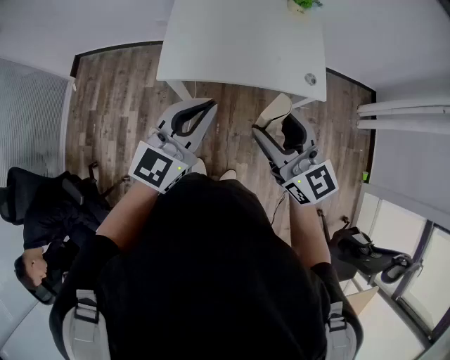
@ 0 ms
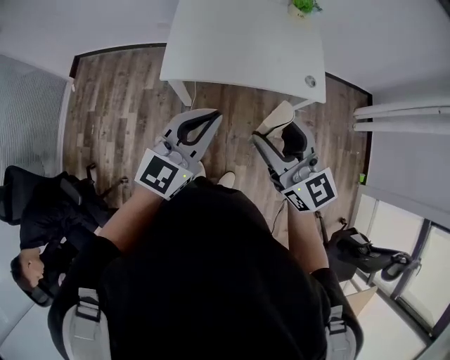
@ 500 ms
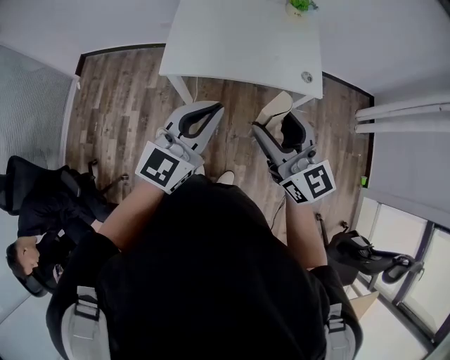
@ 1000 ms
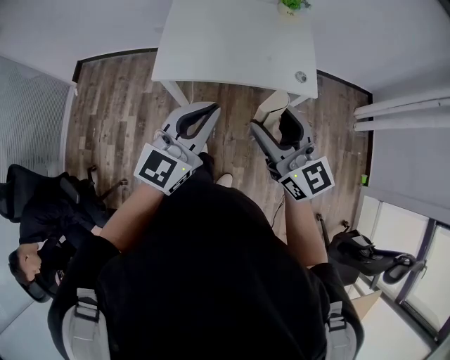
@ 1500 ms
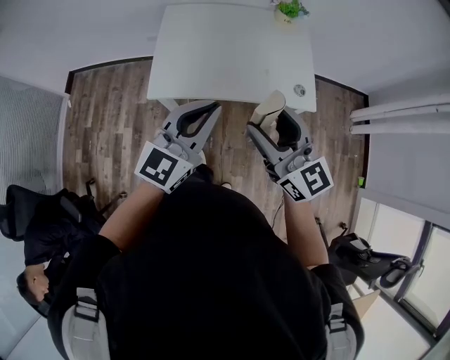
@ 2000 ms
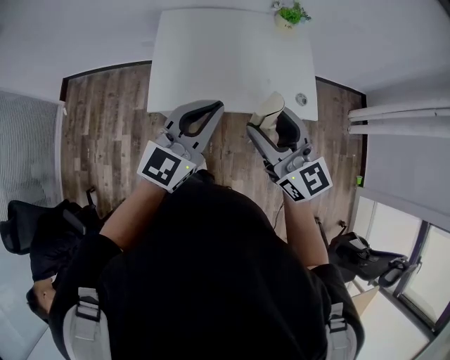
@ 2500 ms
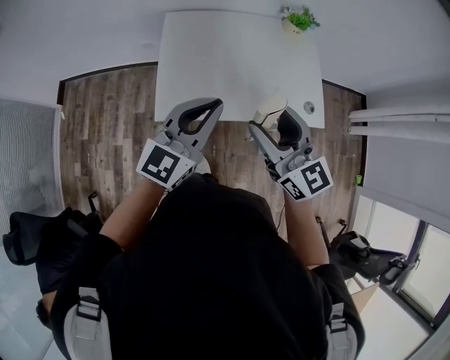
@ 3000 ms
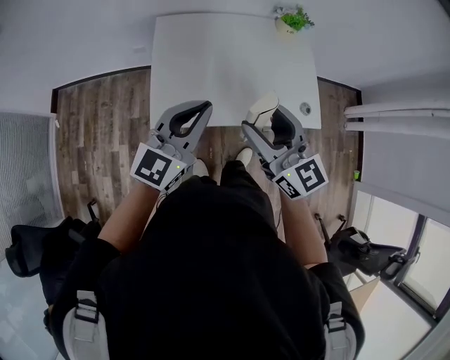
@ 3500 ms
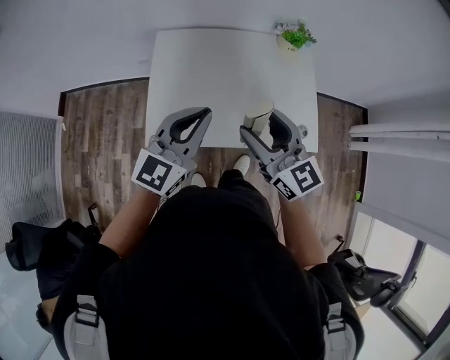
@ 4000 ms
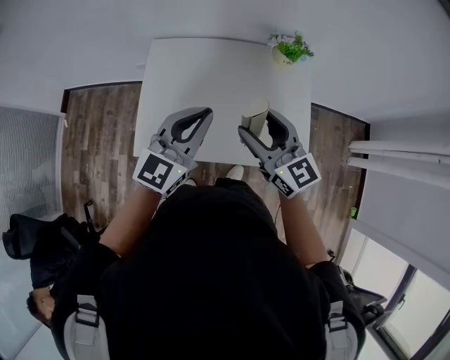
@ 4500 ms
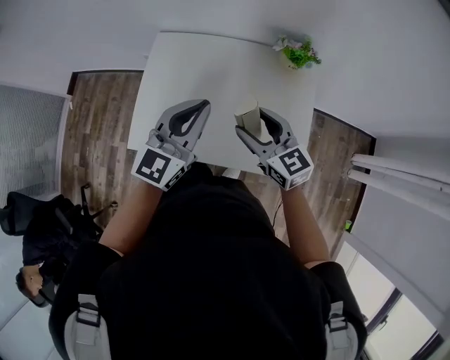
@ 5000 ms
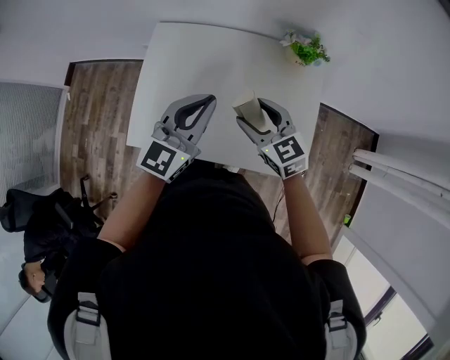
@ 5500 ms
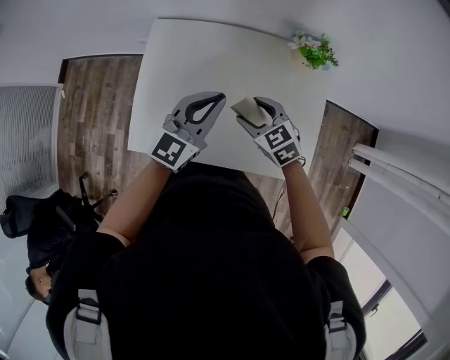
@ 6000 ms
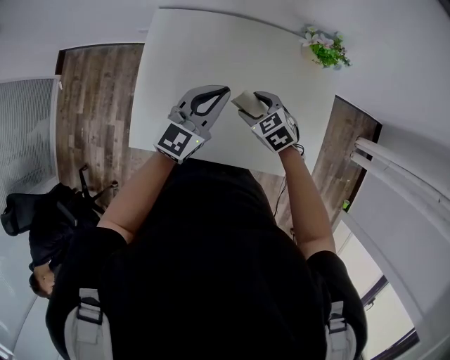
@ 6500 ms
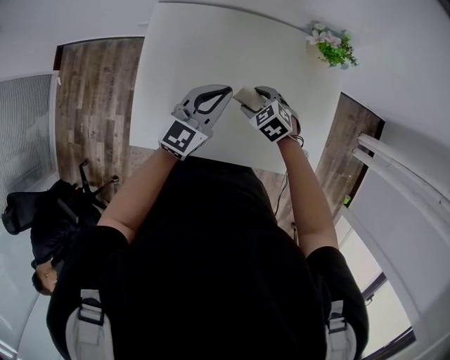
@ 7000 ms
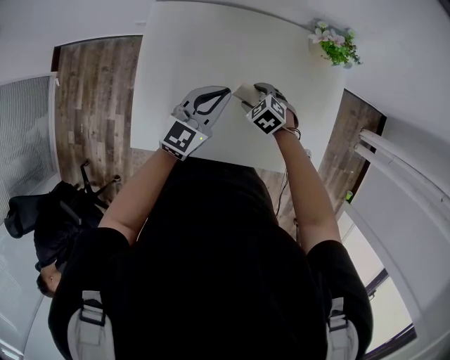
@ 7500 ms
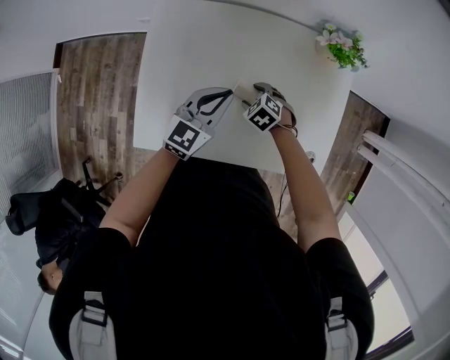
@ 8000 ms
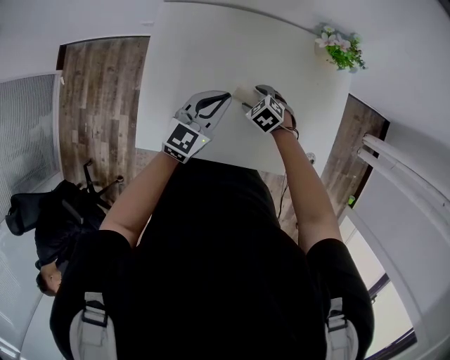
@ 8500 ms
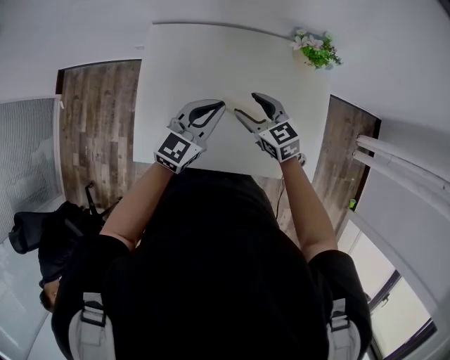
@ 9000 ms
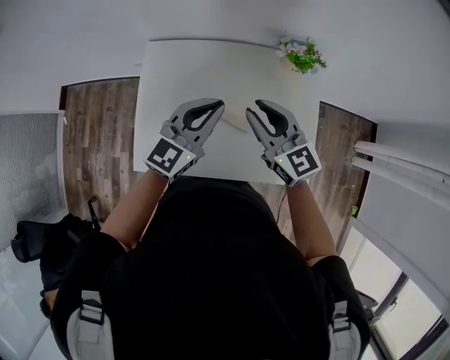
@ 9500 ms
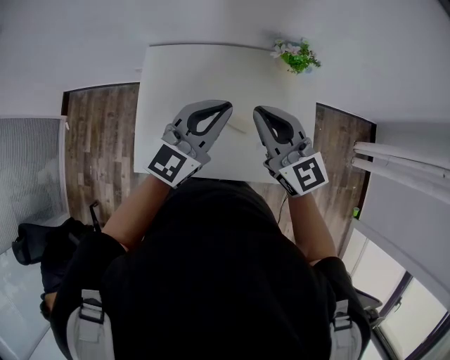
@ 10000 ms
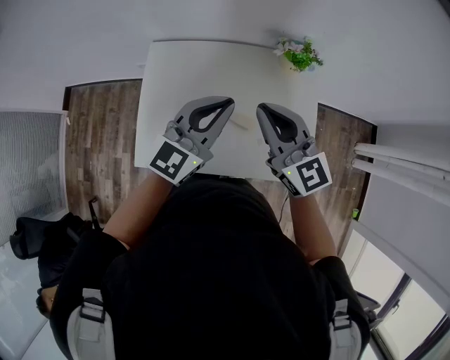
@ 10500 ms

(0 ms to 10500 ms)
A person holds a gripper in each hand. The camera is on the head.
0 ms - 2000 ms: Both grippers travel together forward, approximately 5 cm.
2000 ms - 4000 ms: The two grippers go some 20 cm forward.
4000 ms - 6500 ms: The left gripper shifts some 25 cm forward, downward and to the right; the right gripper moves downward and forward, some 35 cm, and tilts its fingers roughly 50 degrees downward.
6500 ms - 8500 ms: The right gripper travels downward by about 10 cm; the left gripper moves downward, about 10 cm.
8500 ms - 10500 ms: The right gripper goes about 40 cm upward, points its fingers about 70 degrees further upward, and closes; the left gripper goes approximately 20 cm upward.

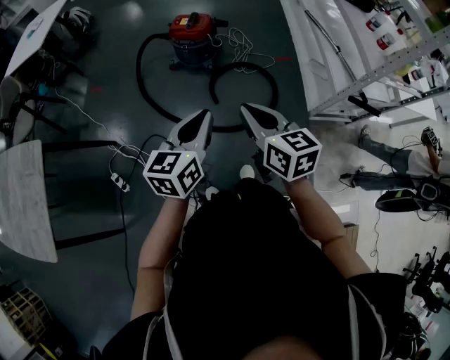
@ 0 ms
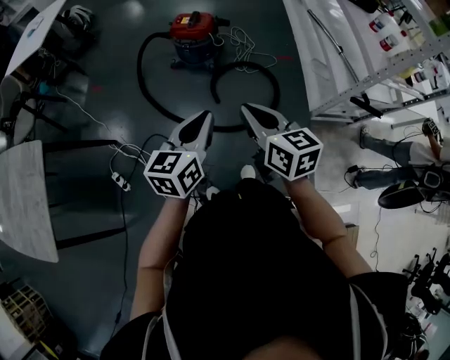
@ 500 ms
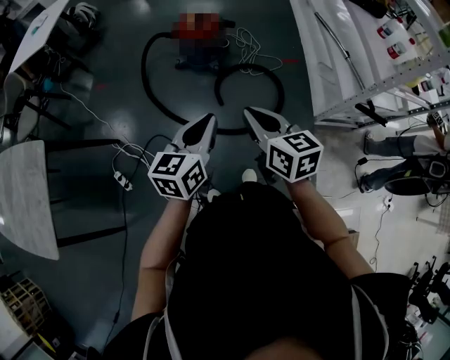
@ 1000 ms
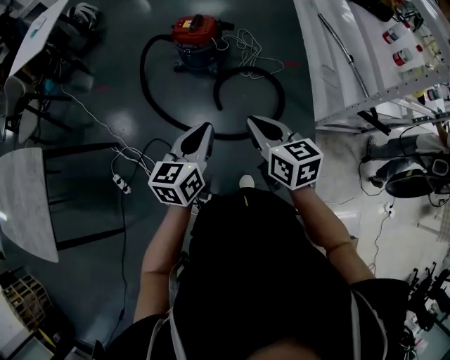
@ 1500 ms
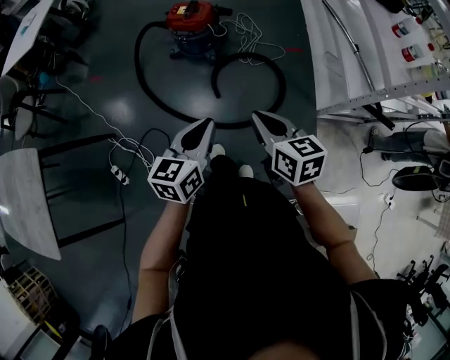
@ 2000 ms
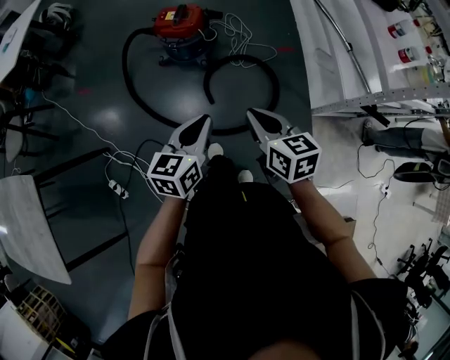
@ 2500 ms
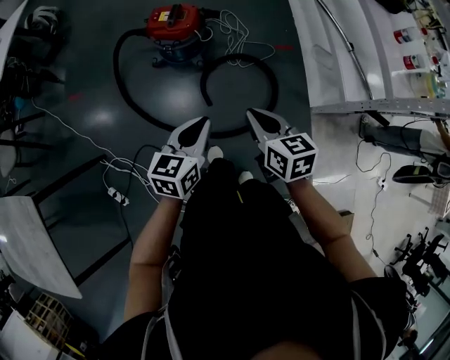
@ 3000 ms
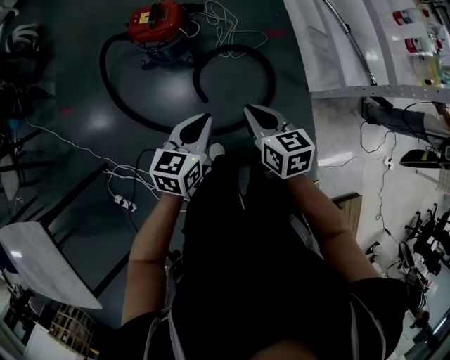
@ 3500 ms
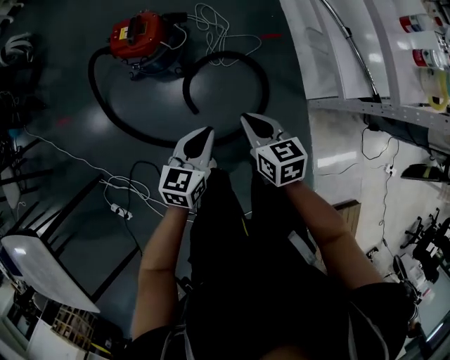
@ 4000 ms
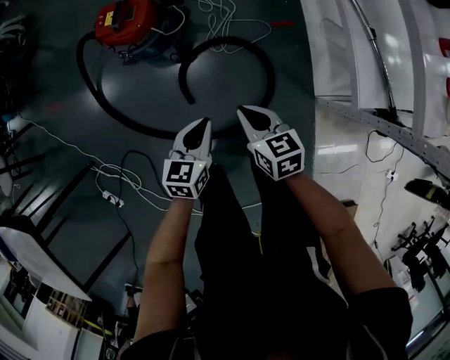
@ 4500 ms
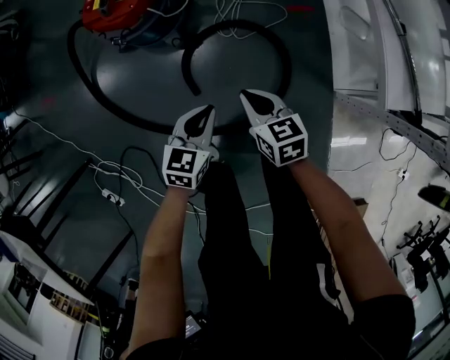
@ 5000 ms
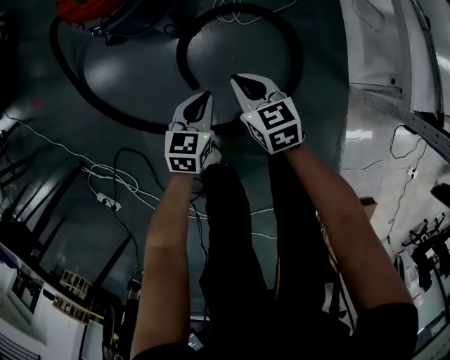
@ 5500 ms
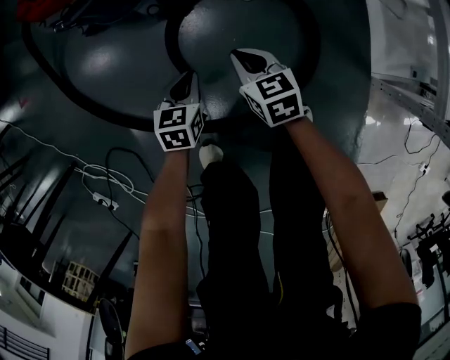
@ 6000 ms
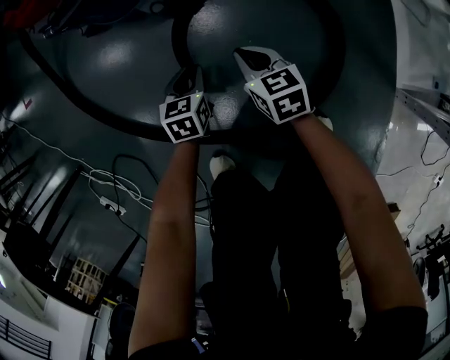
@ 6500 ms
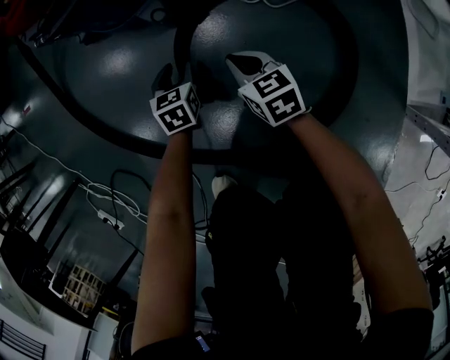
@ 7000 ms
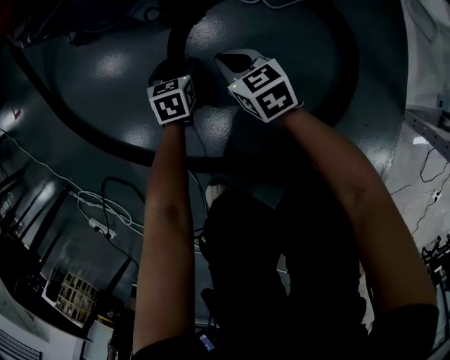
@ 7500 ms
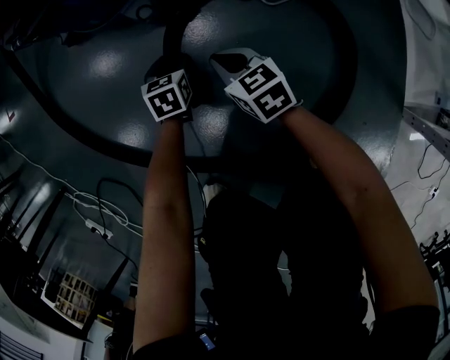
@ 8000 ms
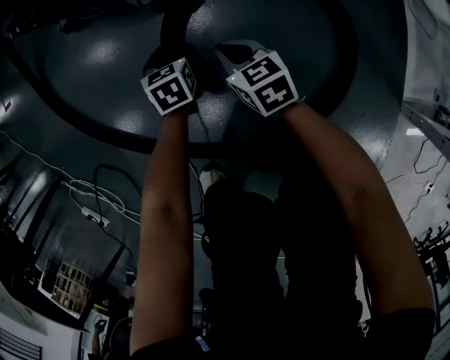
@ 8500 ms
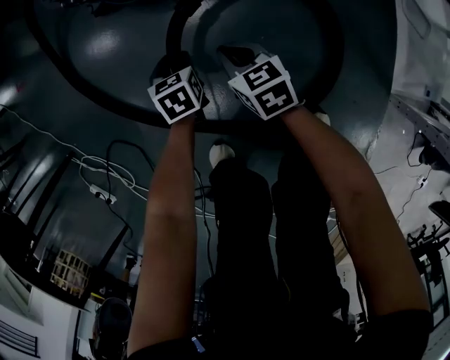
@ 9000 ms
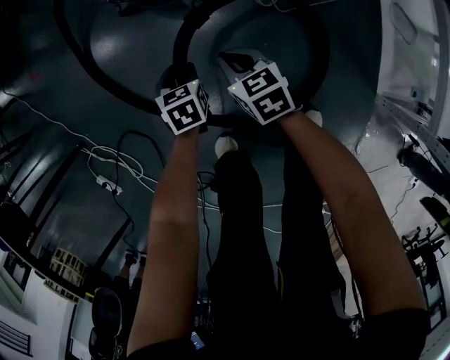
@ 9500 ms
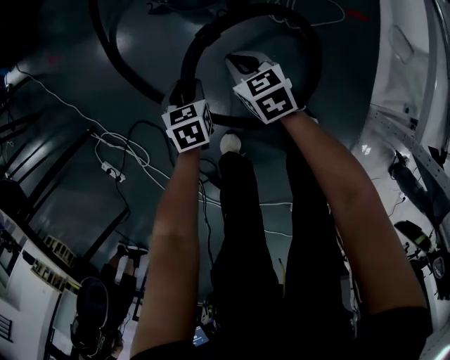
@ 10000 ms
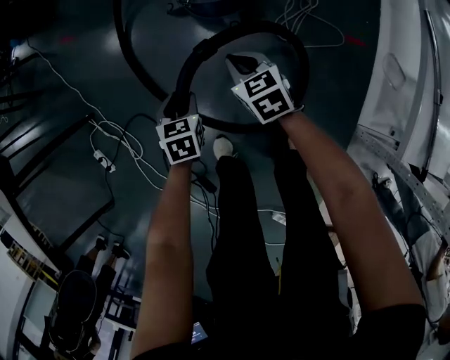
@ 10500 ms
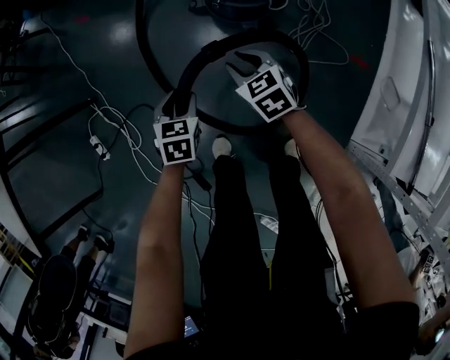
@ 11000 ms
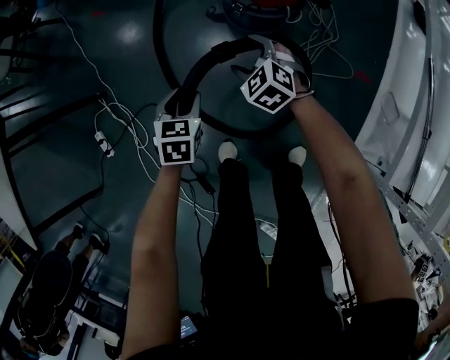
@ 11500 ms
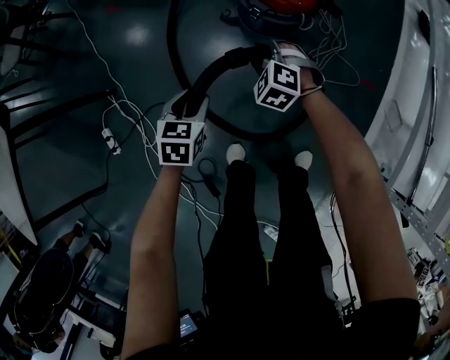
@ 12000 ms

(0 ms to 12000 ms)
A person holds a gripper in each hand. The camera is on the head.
0 ms - 2000 ms: The right gripper heads forward, to the right and downward, covering approximately 15 cm, while the left gripper is displaced forward, downward and to the right by about 15 cm.
2000 ms - 4000 ms: Both grippers move forward and downward, approximately 25 cm.
4000 ms - 6000 ms: Both grippers travel together downward, roughly 50 cm. The left gripper changes its angle by roughly 20 degrees.
6000 ms - 8000 ms: The left gripper shifts some 25 cm downward and forward, and opens up; the right gripper heads downward, forward and to the left, covering about 20 cm.
8000 ms - 10000 ms: Both grippers travel together upward, about 35 cm.
10000 ms - 12000 ms: The left gripper travels upward and to the left by approximately 25 cm; the right gripper moves upward, to the left and forward, some 20 cm, rolls counterclockwise, seen from behind, by some 70 degrees, and opens.

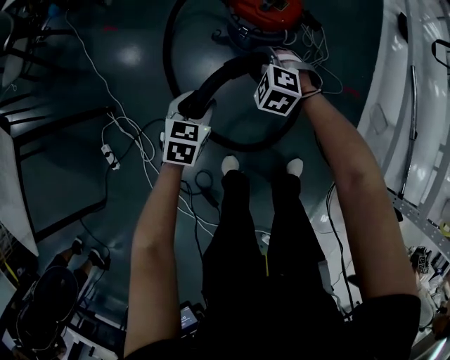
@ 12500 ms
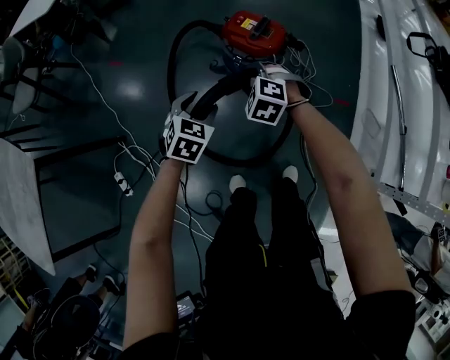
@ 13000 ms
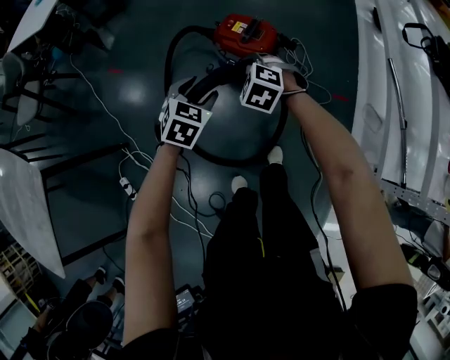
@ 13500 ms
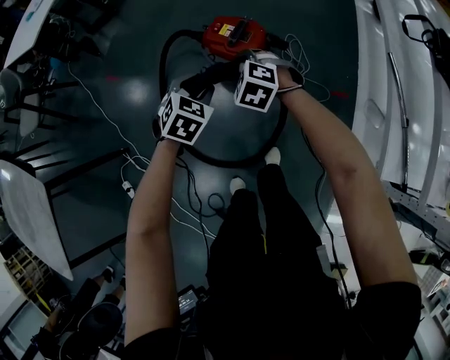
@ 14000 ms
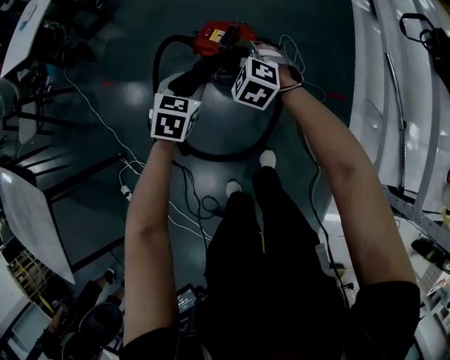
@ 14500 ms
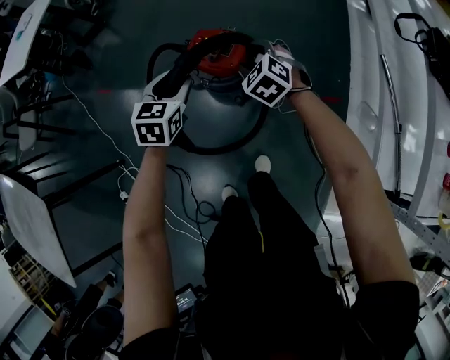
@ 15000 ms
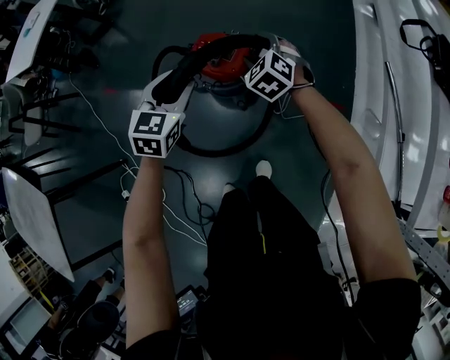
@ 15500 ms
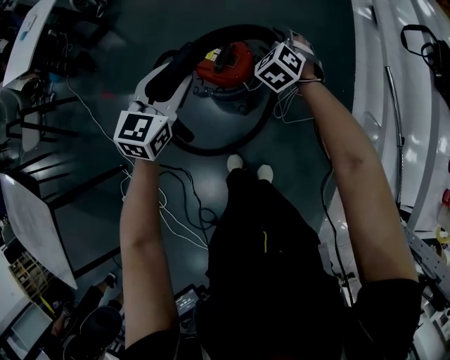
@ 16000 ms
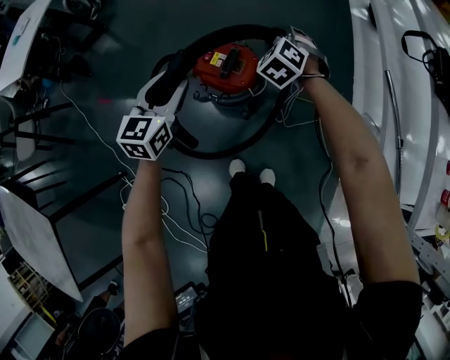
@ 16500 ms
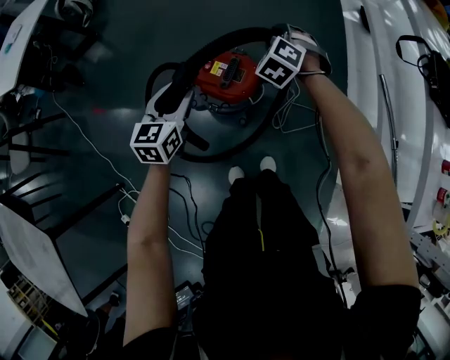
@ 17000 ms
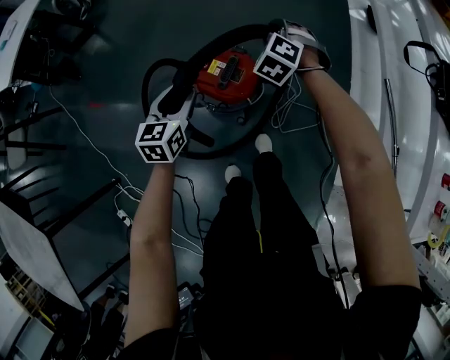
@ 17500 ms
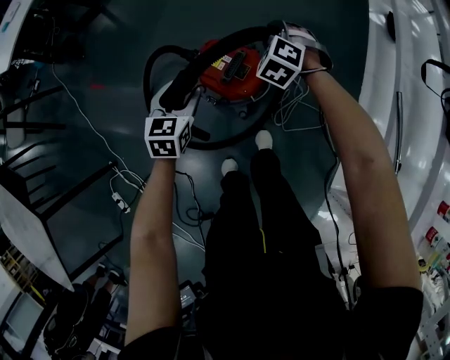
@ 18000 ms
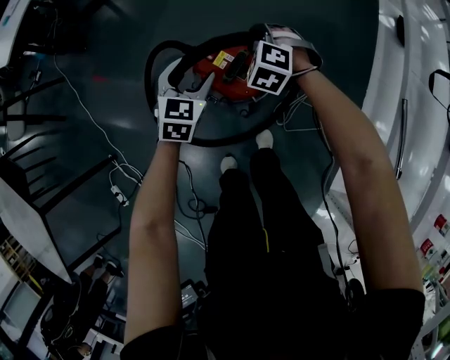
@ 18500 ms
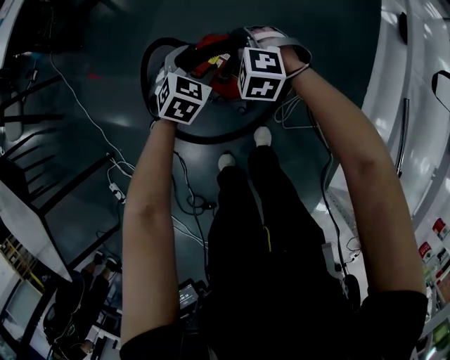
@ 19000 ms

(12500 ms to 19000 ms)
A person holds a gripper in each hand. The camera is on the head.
12500 ms - 14500 ms: The right gripper is displaced upward, forward and to the right by some 20 cm; the left gripper shifts some 25 cm forward, to the right and upward.
14500 ms - 17000 ms: The right gripper travels forward by roughly 20 cm, and changes its angle by roughly 30 degrees. The left gripper travels forward and to the left by about 15 cm, and changes its angle by about 30 degrees.
17000 ms - 19000 ms: The left gripper ends up roughly 20 cm from where it was, and swivels about 40 degrees. The right gripper shifts some 10 cm downward, and swivels roughly 40 degrees.
